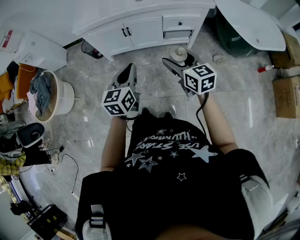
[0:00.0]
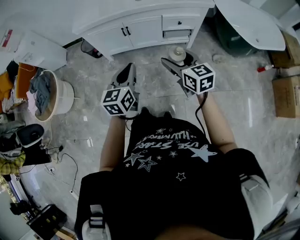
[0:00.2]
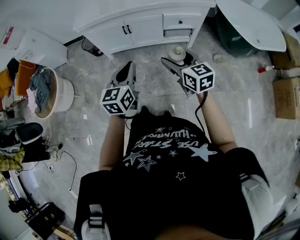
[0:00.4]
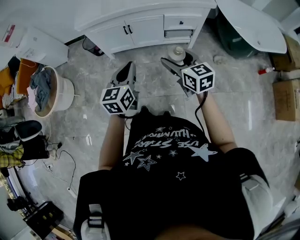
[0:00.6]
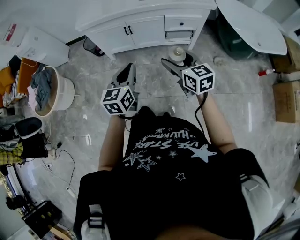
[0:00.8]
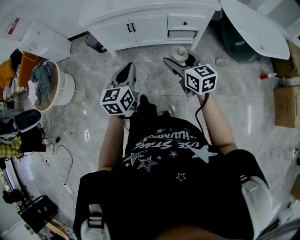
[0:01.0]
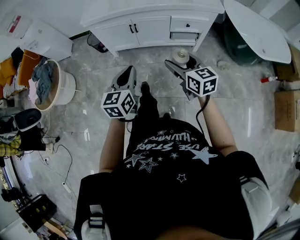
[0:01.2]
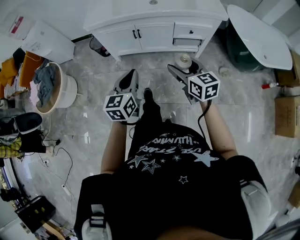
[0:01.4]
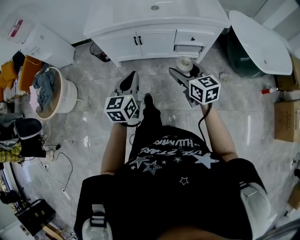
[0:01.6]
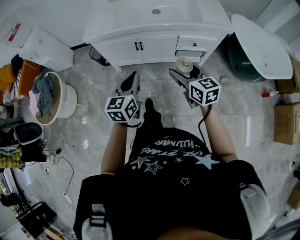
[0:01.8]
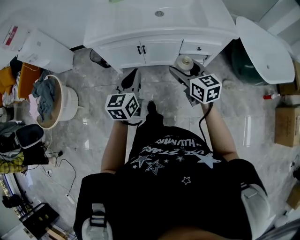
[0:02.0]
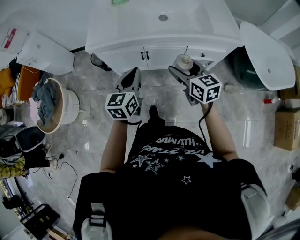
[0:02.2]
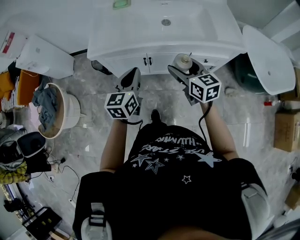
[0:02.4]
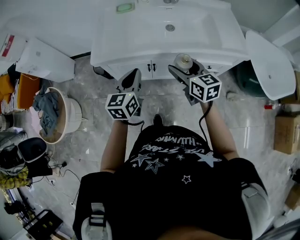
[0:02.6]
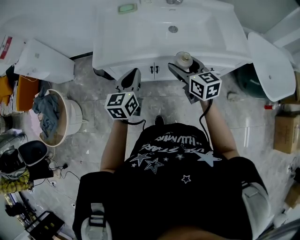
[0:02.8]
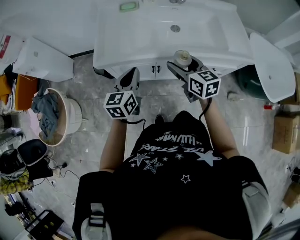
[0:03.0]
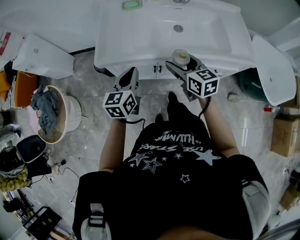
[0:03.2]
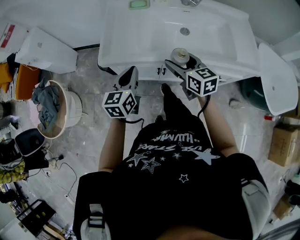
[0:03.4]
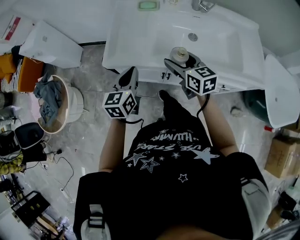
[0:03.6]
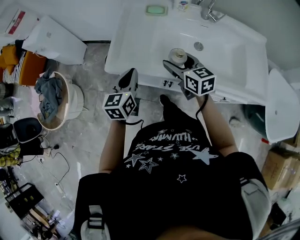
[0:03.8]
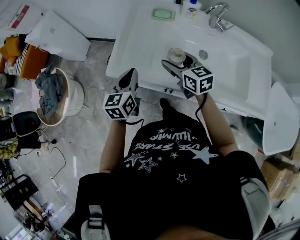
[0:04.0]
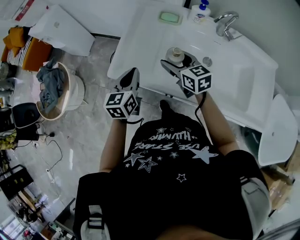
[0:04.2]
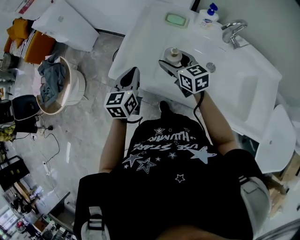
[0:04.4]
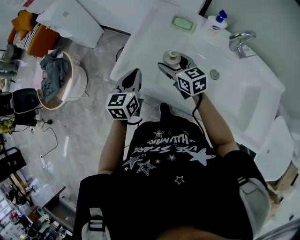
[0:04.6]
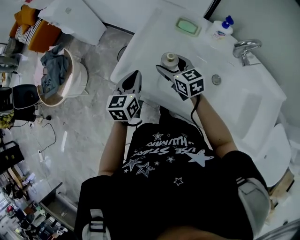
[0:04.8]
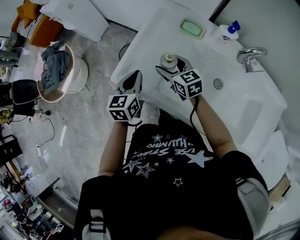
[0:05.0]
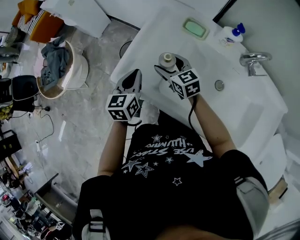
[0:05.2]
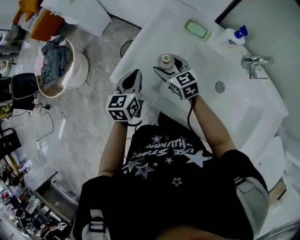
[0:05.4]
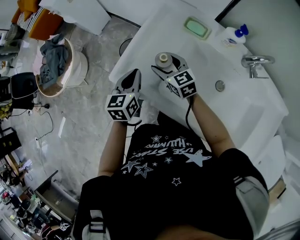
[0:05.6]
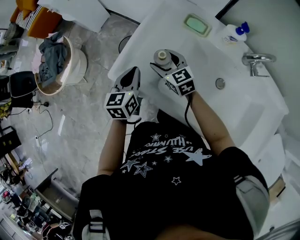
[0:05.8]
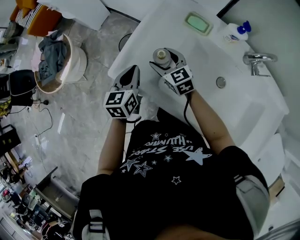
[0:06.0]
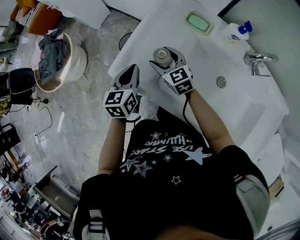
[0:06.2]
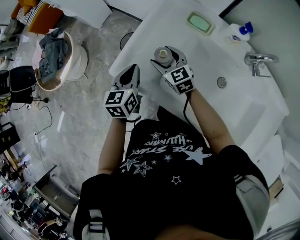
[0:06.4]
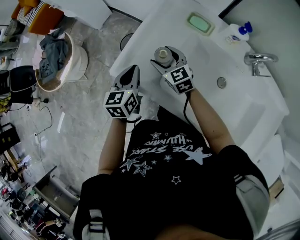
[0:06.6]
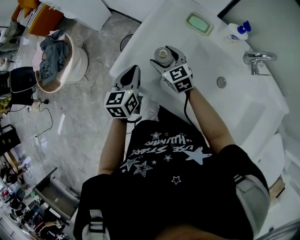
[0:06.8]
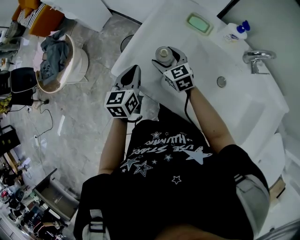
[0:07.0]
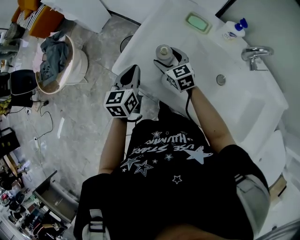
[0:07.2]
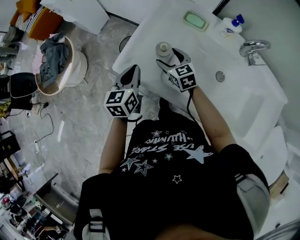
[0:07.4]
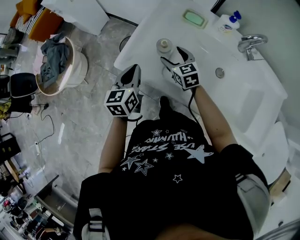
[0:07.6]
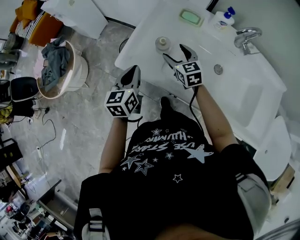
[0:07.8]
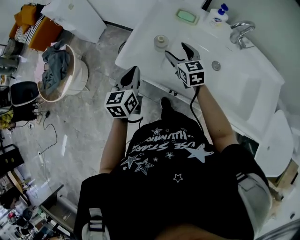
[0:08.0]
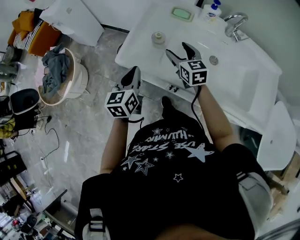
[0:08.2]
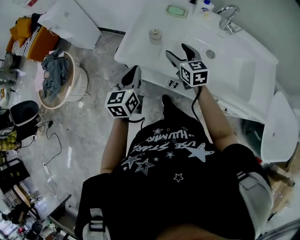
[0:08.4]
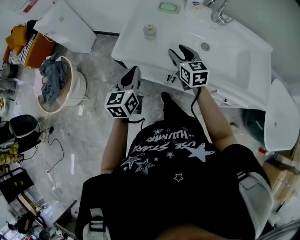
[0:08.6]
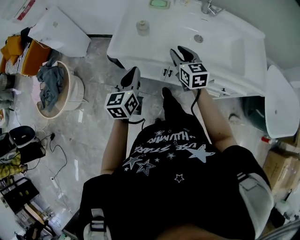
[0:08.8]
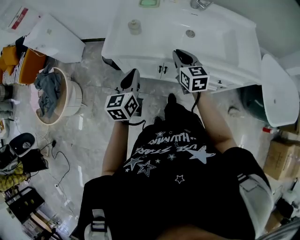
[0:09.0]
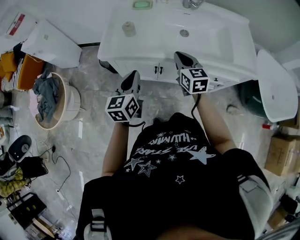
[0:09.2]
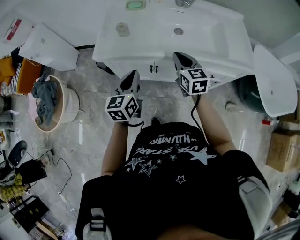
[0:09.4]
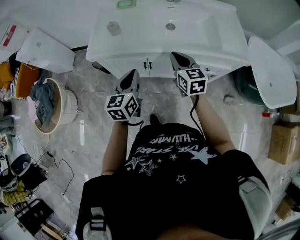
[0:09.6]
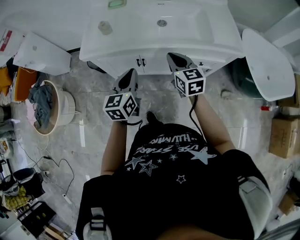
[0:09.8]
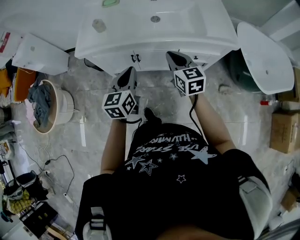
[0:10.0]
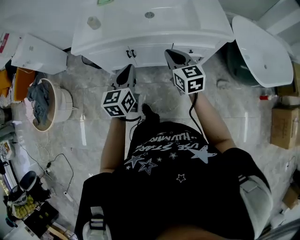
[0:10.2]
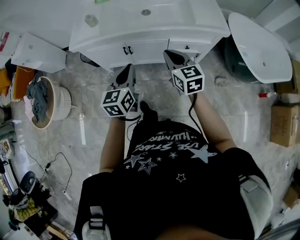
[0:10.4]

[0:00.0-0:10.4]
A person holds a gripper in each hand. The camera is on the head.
0:00.0 to 0:01.4: The grippers move only a little.
0:01.4 to 0:03.0: The pair of grippers is taken forward, about 40 cm.
0:03.0 to 0:04.4: The right gripper moves roughly 30 cm, and swivels approximately 30 degrees; the left gripper shifts by about 20 cm, and rotates about 30 degrees.
0:04.4 to 0:06.0: The right gripper is displaced downward, forward and to the left by some 15 cm, while the left gripper is displaced downward and forward by roughly 10 cm.
0:06.0 to 0:07.4: The grippers stay close to where they were, moving slightly.
0:07.4 to 0:09.0: The right gripper shifts by about 30 cm, rotates about 40 degrees, and closes. Meanwhile the left gripper ends up about 25 cm from where it was, and swivels approximately 20 degrees.
0:09.0 to 0:10.4: The right gripper moves backward and to the right, some 30 cm, while the left gripper is displaced to the right and backward by approximately 25 cm.

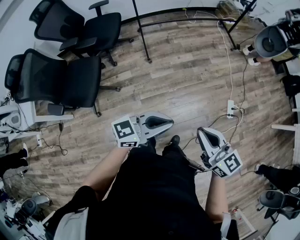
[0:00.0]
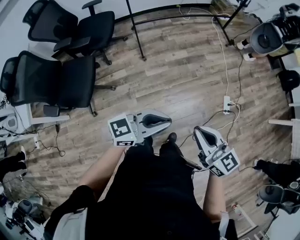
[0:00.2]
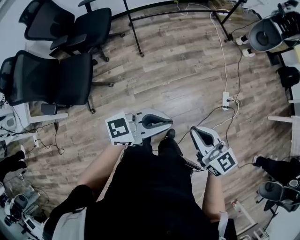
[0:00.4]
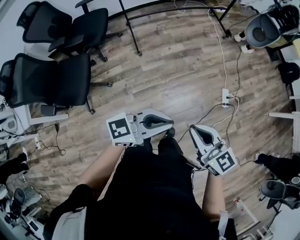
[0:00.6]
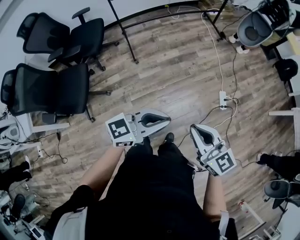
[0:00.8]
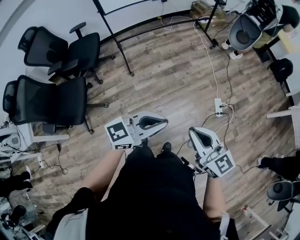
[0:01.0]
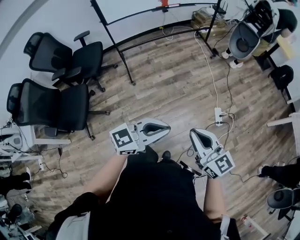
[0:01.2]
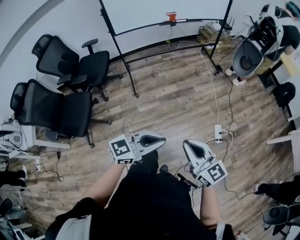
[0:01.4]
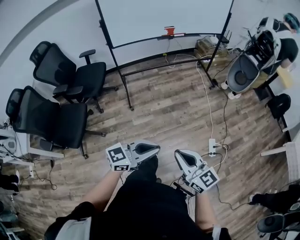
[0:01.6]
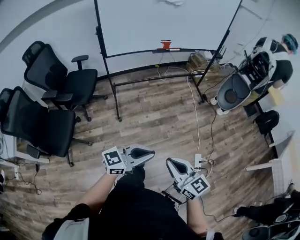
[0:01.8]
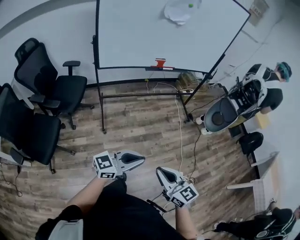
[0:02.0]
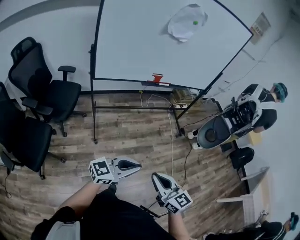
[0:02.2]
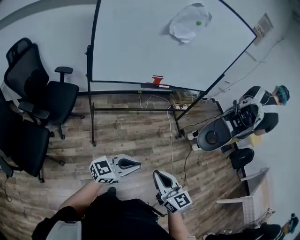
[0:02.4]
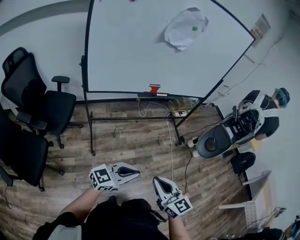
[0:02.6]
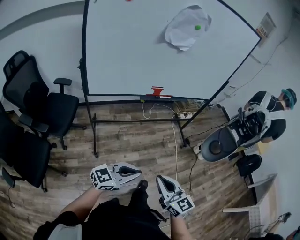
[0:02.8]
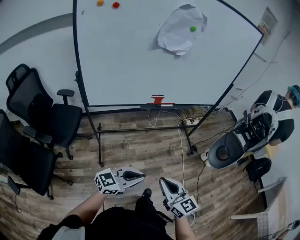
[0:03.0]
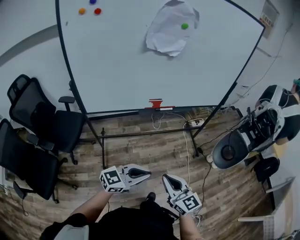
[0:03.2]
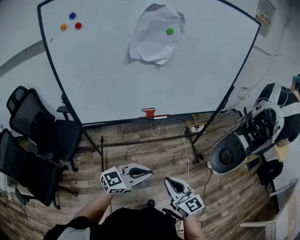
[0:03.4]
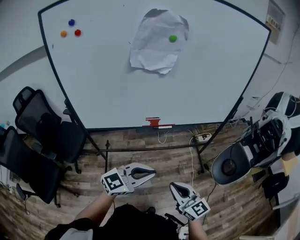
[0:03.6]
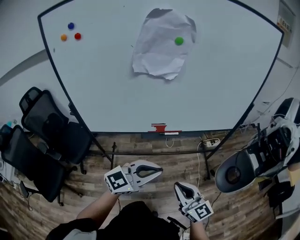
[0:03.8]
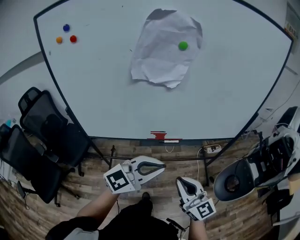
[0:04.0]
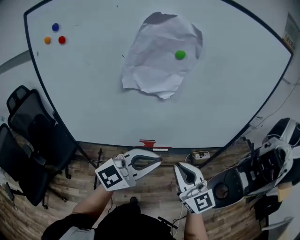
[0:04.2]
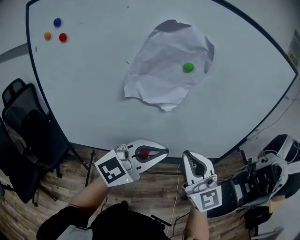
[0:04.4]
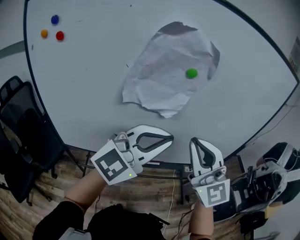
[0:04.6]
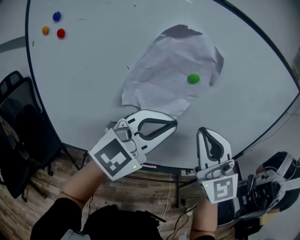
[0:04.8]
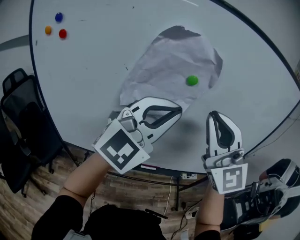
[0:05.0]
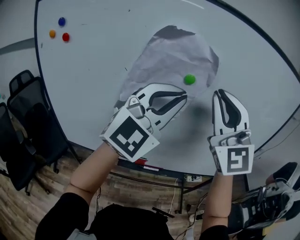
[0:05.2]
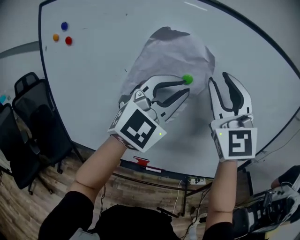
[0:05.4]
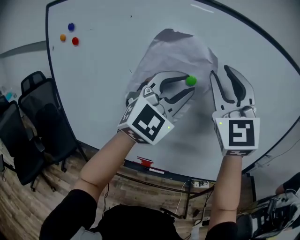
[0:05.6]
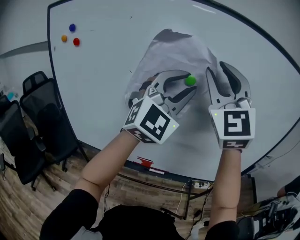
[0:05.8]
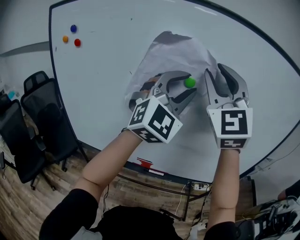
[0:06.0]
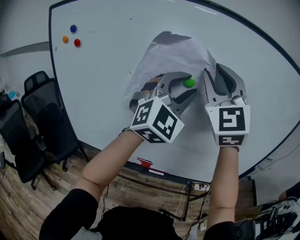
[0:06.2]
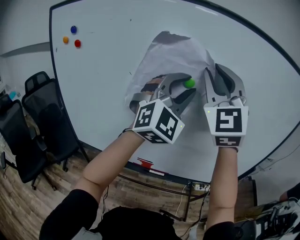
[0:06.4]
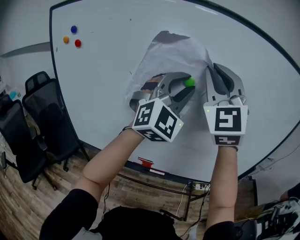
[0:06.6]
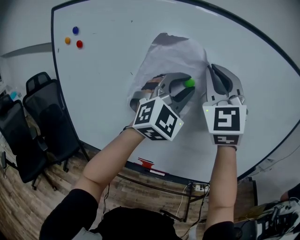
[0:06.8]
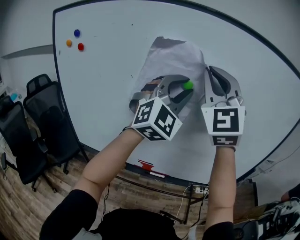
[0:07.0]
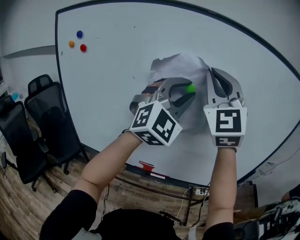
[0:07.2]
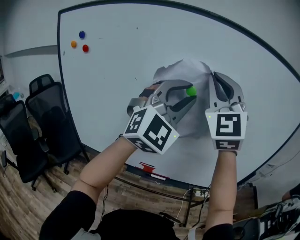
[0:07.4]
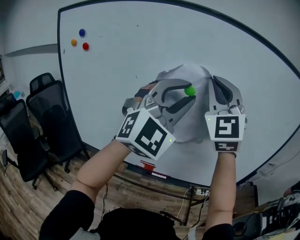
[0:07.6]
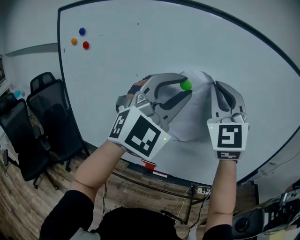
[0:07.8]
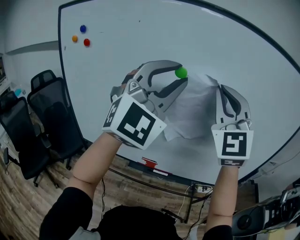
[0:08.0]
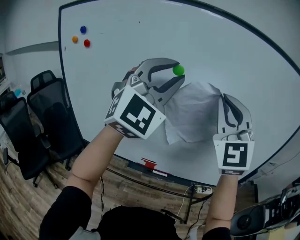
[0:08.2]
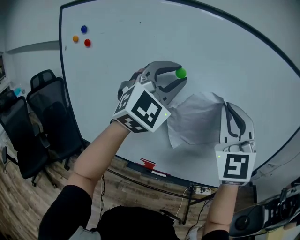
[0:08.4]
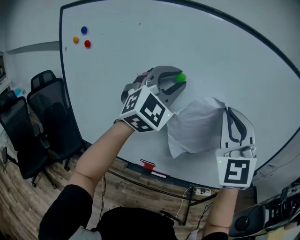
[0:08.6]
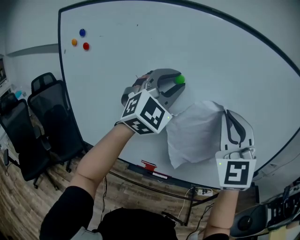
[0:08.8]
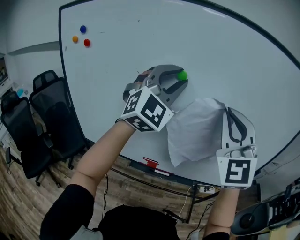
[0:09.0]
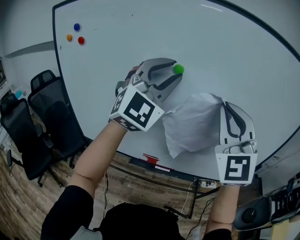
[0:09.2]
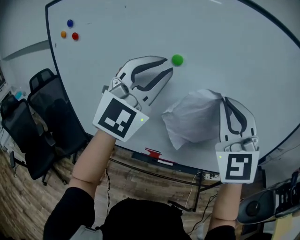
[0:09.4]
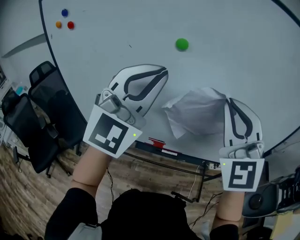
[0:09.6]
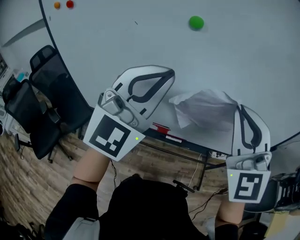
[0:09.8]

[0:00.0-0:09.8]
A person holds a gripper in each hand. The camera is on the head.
0:00.0 to 0:01.4: The right gripper heads to the right and forward, covering roughly 15 cm, while the left gripper heads to the right, covering roughly 15 cm.
0:01.4 to 0:02.8: Both grippers are carried forward, about 40 cm.
0:02.8 to 0:04.2: Both grippers are carried forward, approximately 50 cm. The left gripper is displaced upward by about 20 cm, and swivels approximately 30 degrees. Meanwhile the right gripper rotates approximately 20 degrees.
0:04.2 to 0:05.6: The two grippers go some 35 cm upward and forward. The left gripper rotates about 50 degrees, and opens. The right gripper turns by roughly 40 degrees, and opens its fingers.
0:05.6 to 0:07.0: The right gripper closes.
0:07.0 to 0:08.4: The right gripper heads backward, downward and to the right, covering roughly 10 cm. The left gripper moves some 5 cm.
0:08.4 to 0:09.8: The right gripper shifts approximately 15 cm downward. The left gripper shifts roughly 15 cm downward and backward, and closes.

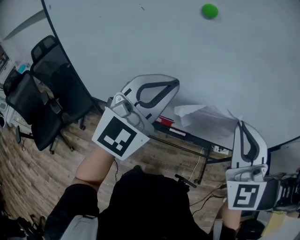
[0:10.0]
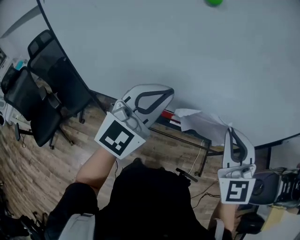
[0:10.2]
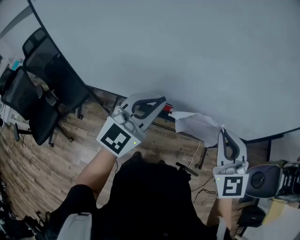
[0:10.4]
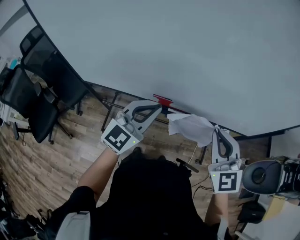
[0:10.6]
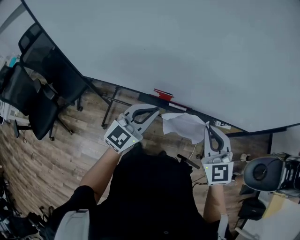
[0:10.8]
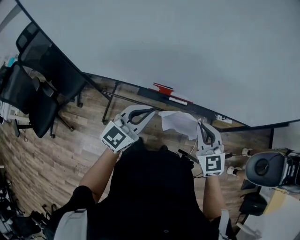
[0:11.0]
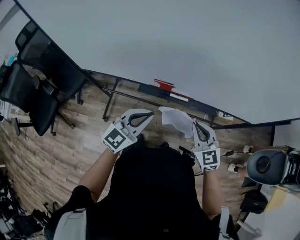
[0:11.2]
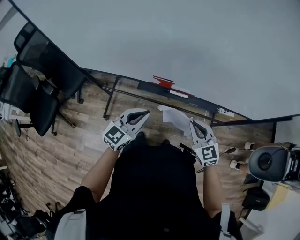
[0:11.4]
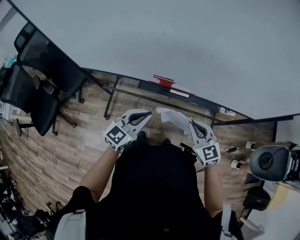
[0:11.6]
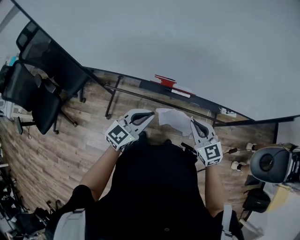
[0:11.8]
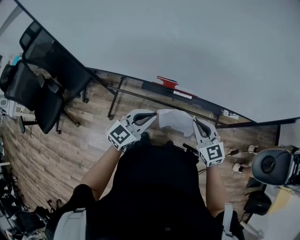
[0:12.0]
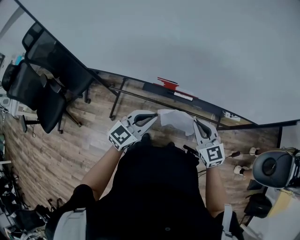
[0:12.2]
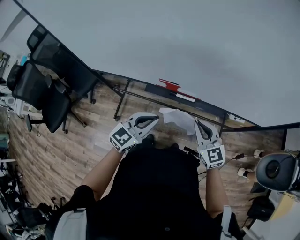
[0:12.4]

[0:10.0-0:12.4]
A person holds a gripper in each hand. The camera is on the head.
0:10.0 to 0:11.2: The grippers both shift downward by roughly 35 cm. The left gripper swivels approximately 30 degrees. The right gripper rotates some 30 degrees.
0:11.2 to 0:12.4: The grippers make only small movements.

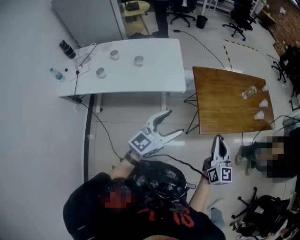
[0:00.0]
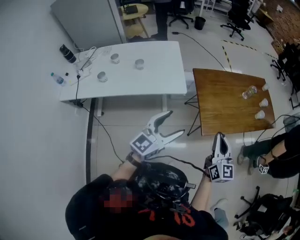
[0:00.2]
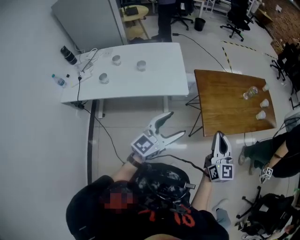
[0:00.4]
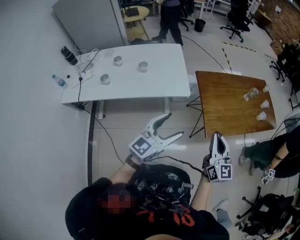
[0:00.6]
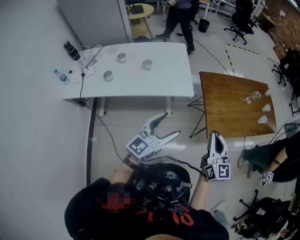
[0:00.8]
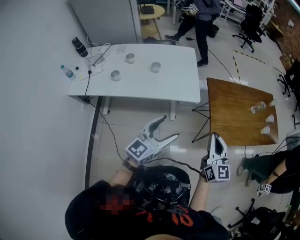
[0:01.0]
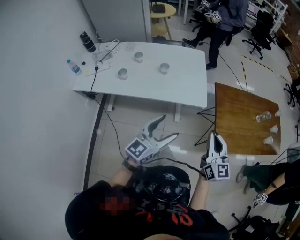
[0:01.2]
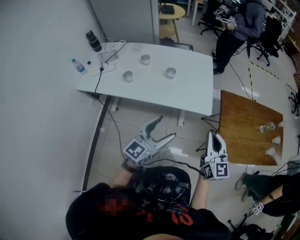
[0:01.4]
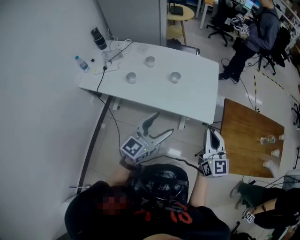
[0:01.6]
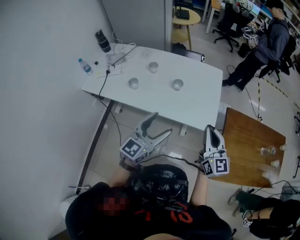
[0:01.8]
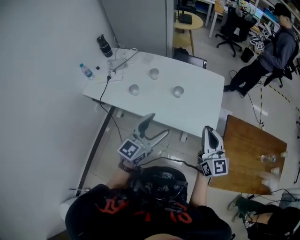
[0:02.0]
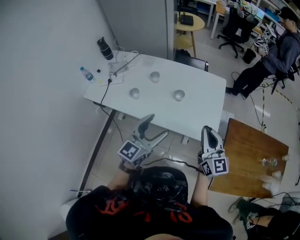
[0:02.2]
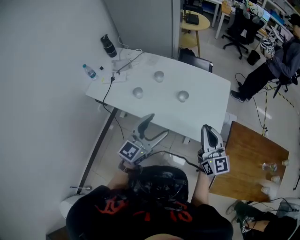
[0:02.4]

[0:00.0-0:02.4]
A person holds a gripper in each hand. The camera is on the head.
0:00.0 to 0:01.2: The two grippers go about 20 cm to the left.
0:01.2 to 0:02.4: Both grippers move forward and to the left, approximately 25 cm. The left gripper rotates approximately 20 degrees. The right gripper turns by approximately 30 degrees.
